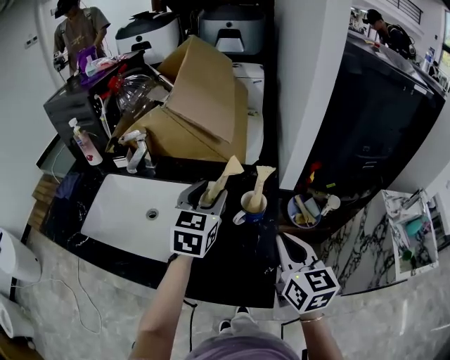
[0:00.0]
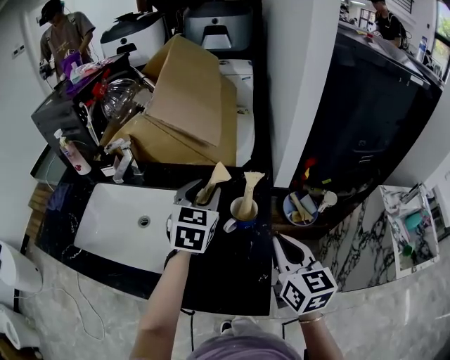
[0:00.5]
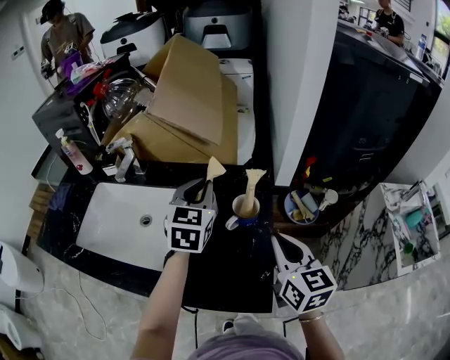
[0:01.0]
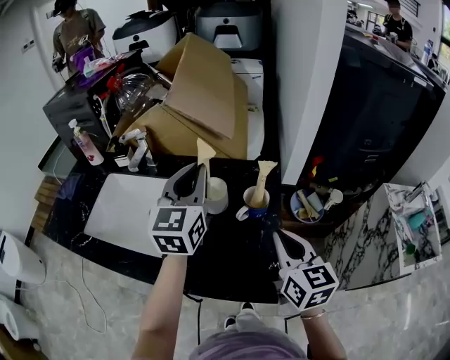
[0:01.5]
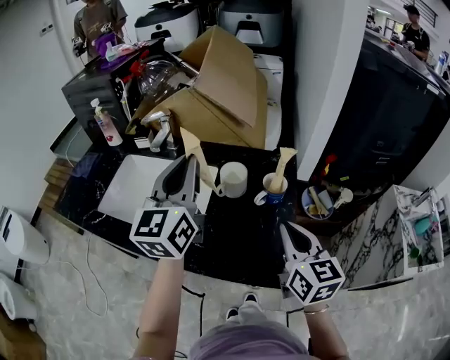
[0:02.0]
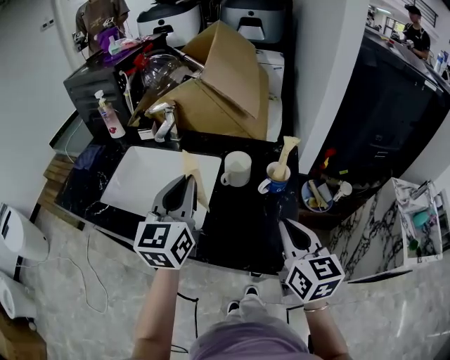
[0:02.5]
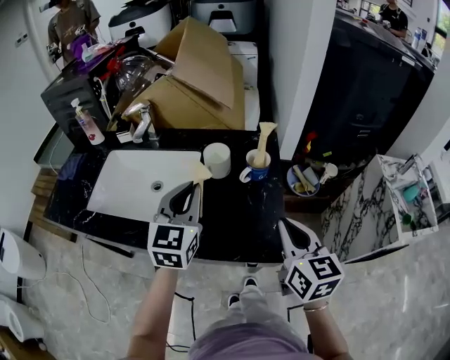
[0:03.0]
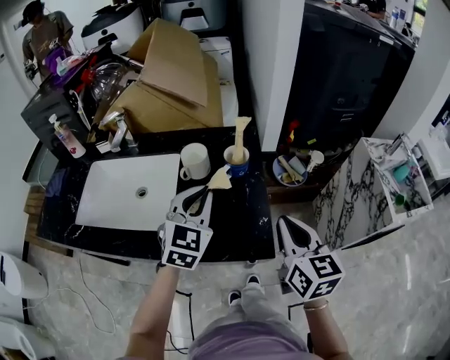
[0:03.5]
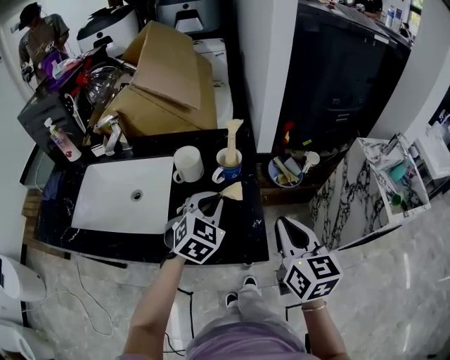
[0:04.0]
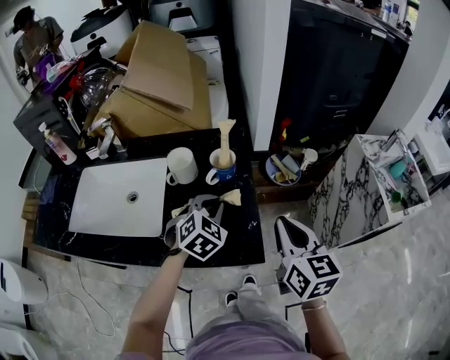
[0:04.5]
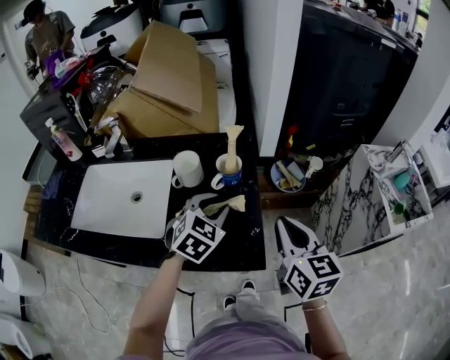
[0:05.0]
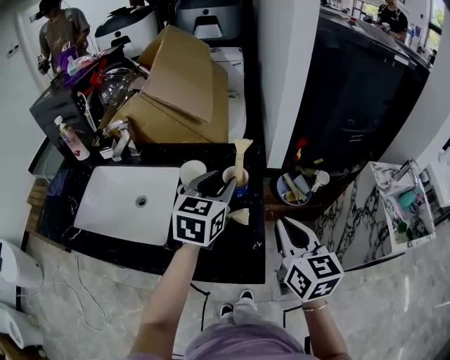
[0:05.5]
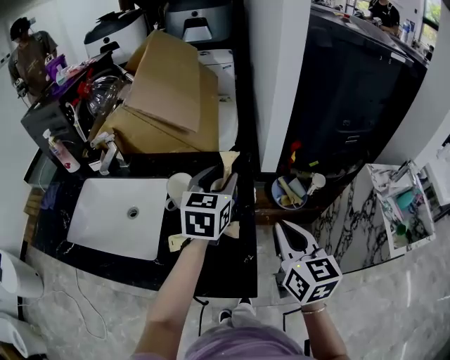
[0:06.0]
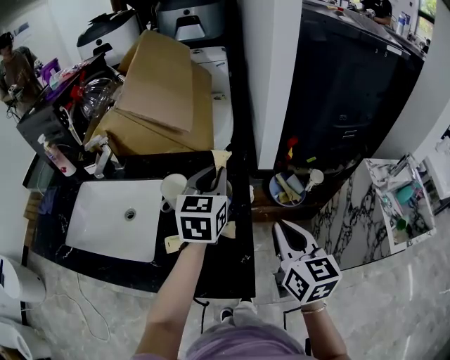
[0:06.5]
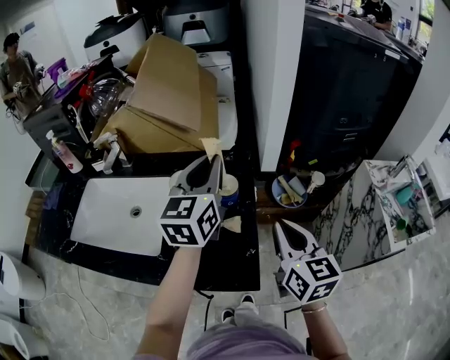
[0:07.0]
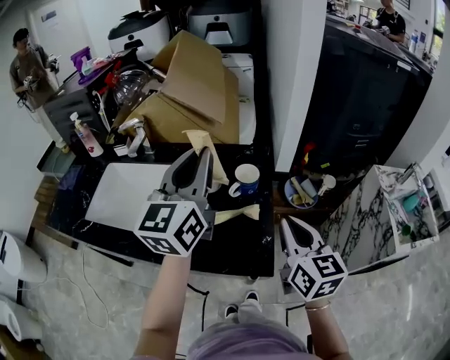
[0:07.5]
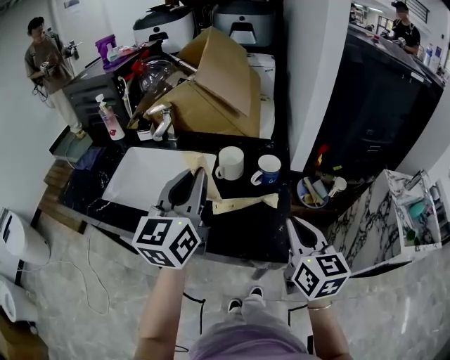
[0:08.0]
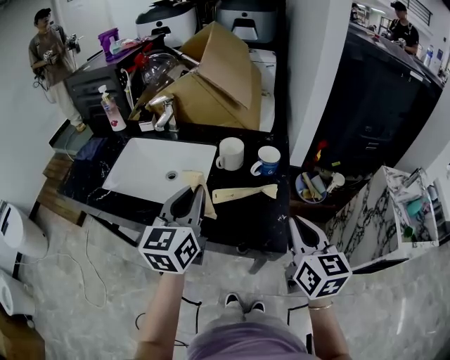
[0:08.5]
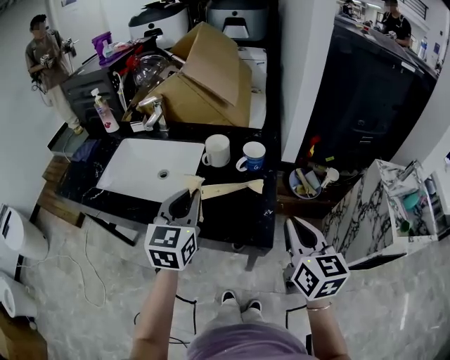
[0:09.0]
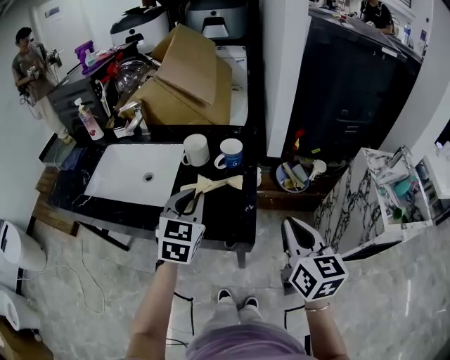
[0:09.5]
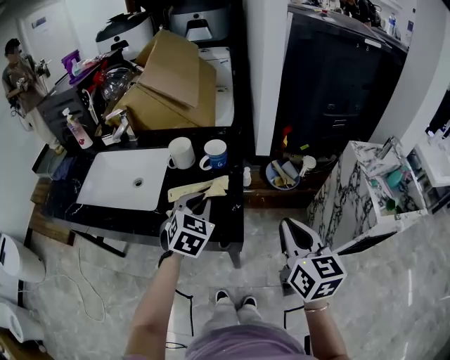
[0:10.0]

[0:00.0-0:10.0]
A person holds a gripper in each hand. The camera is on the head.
0:00.0 to 0:02.0: The left gripper heads upward, to the left and backward, covering approximately 20 cm, rotates roughly 30 degrees, and closes its fingers. Meanwhile the right gripper changes place by some 5 cm.
0:02.0 to 0:04.0: The left gripper travels downward and to the right by approximately 25 cm, and points its fingers approximately 40 degrees further downward; the right gripper is displaced to the right and backward by some 10 cm.
0:04.0 to 0:06.0: The left gripper moves forward and upward, some 15 cm, turns by some 40 degrees, and opens up. Meanwhile the right gripper heads forward, covering about 10 cm.
0:06.0 to 0:08.0: The left gripper is displaced backward, to the left and upward by some 30 cm, changes its angle by roughly 30 degrees, and closes up; the right gripper goes approximately 15 cm backward and to the left.
0:08.0 to 0:10.0: The left gripper travels downward and to the right by about 25 cm, and tilts its fingers some 40 degrees downward; the right gripper is displaced to the right and backward by about 15 cm.

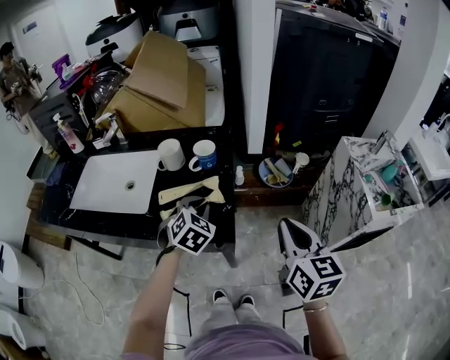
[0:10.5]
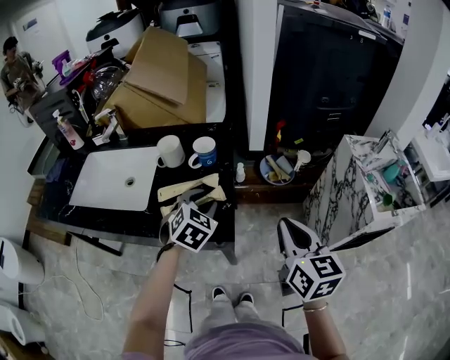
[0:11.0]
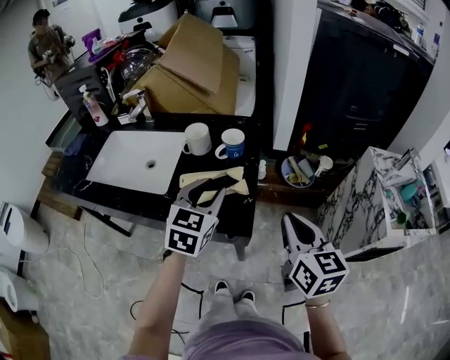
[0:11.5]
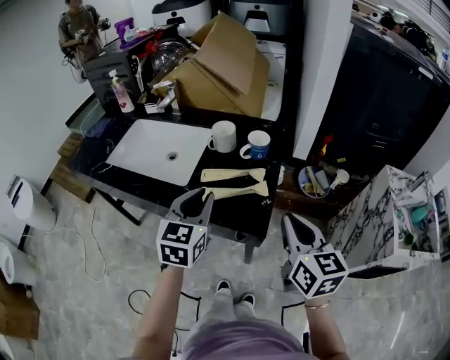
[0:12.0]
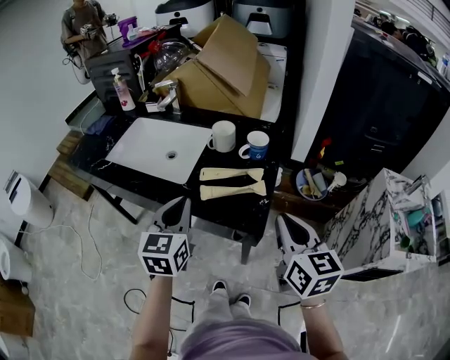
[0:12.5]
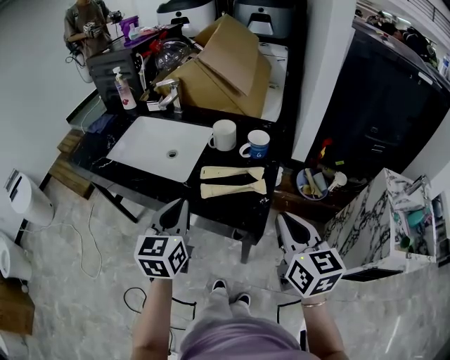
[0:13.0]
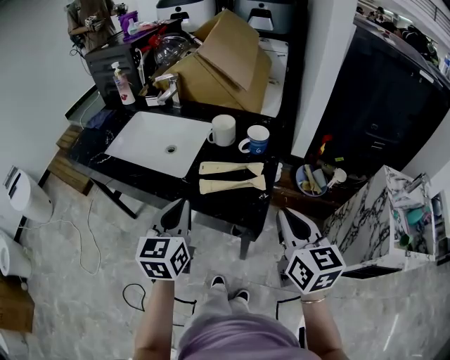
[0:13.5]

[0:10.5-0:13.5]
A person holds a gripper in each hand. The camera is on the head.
0:10.5 to 0:12.0: The right gripper heads to the left, covering about 10 cm, while the left gripper shifts some 15 cm to the left, upward and backward, and changes its angle by about 40 degrees.
0:12.0 to 0:13.5: The left gripper moves to the left, about 5 cm.

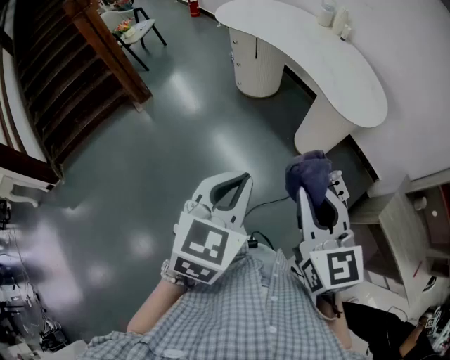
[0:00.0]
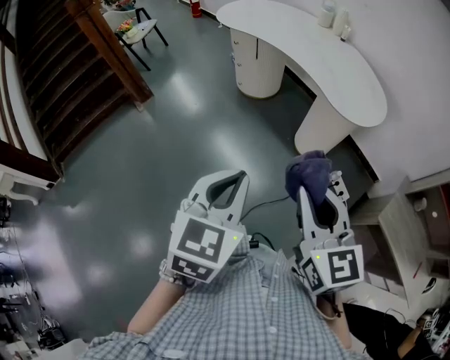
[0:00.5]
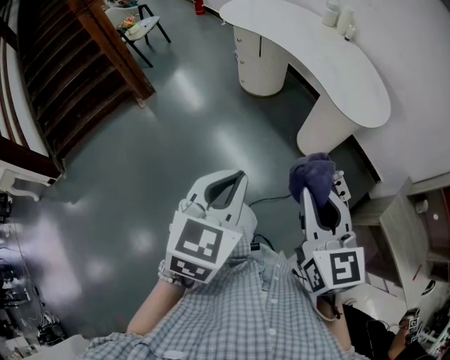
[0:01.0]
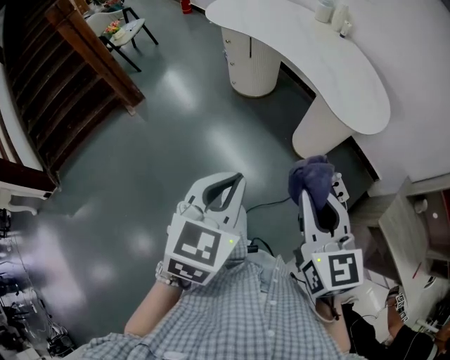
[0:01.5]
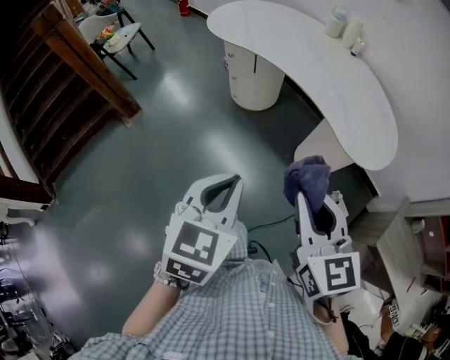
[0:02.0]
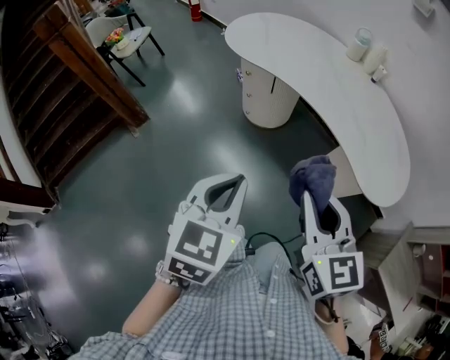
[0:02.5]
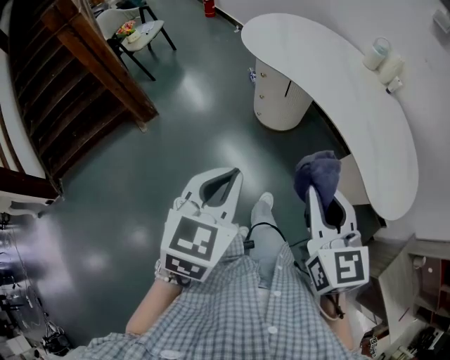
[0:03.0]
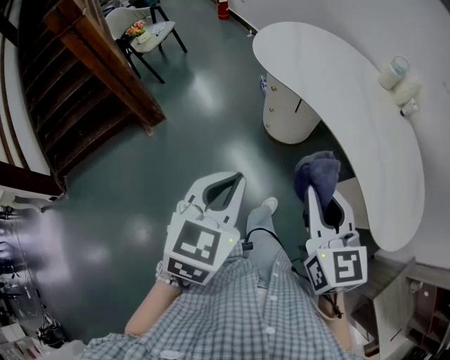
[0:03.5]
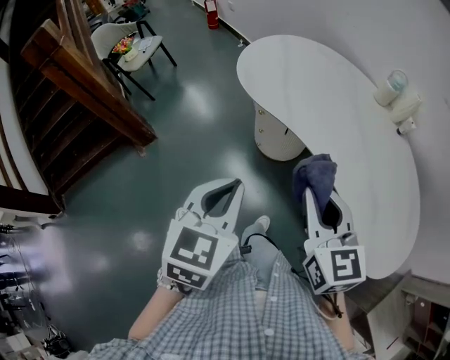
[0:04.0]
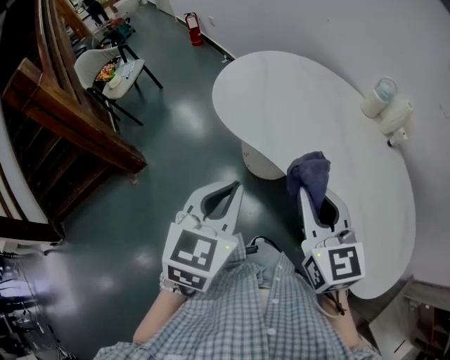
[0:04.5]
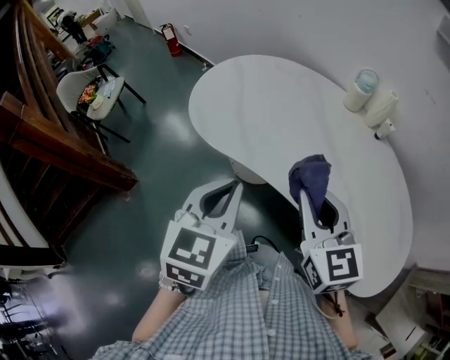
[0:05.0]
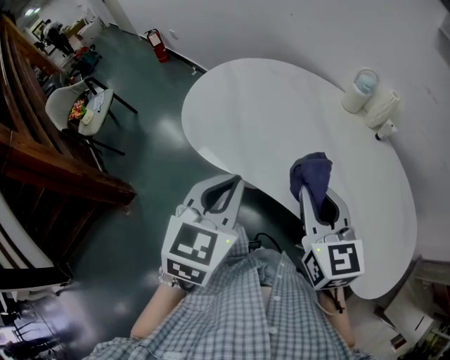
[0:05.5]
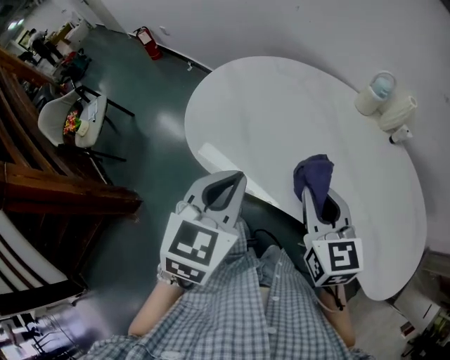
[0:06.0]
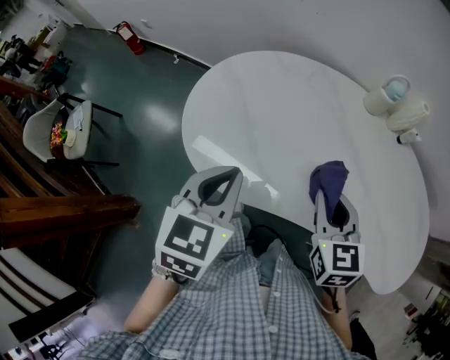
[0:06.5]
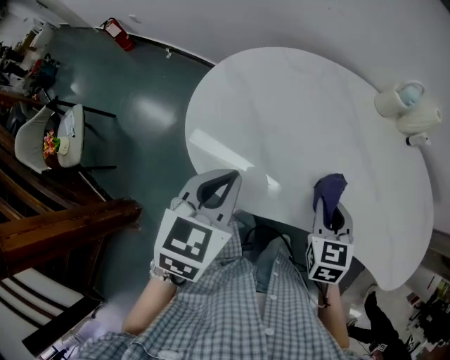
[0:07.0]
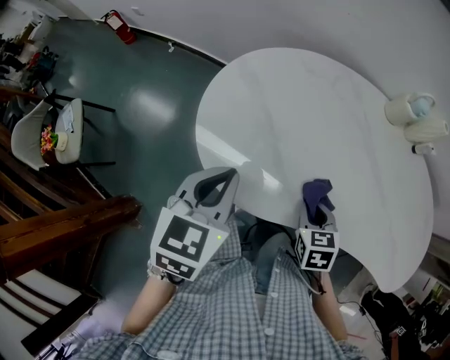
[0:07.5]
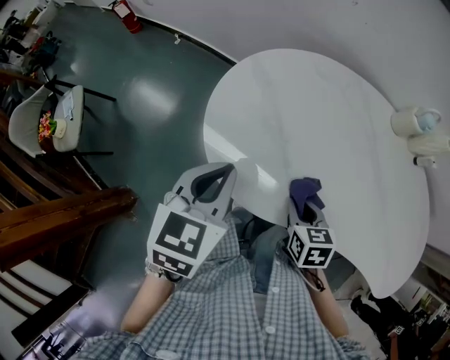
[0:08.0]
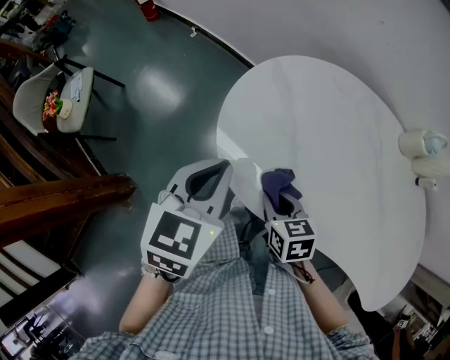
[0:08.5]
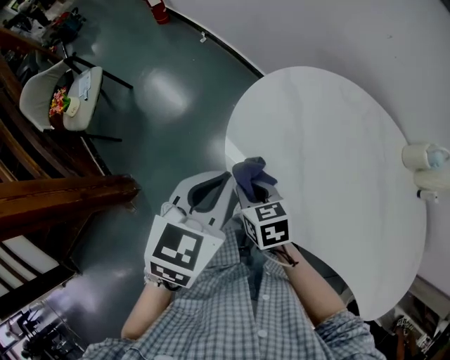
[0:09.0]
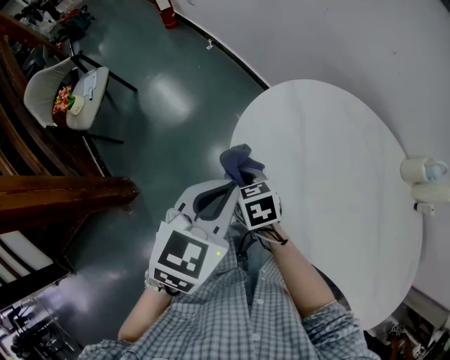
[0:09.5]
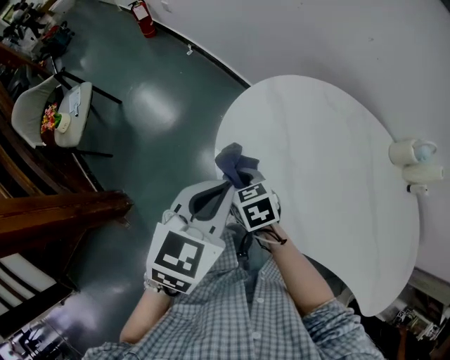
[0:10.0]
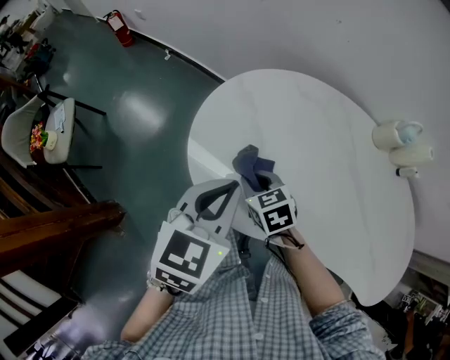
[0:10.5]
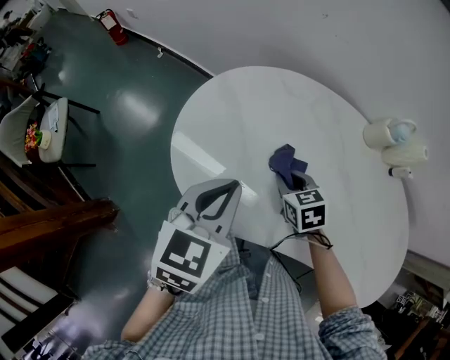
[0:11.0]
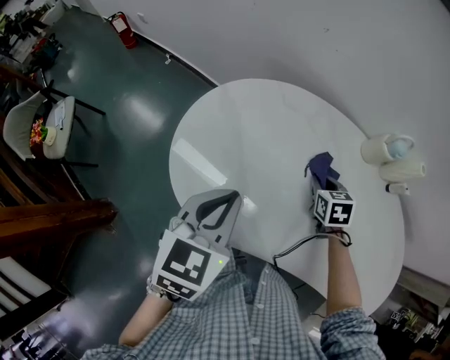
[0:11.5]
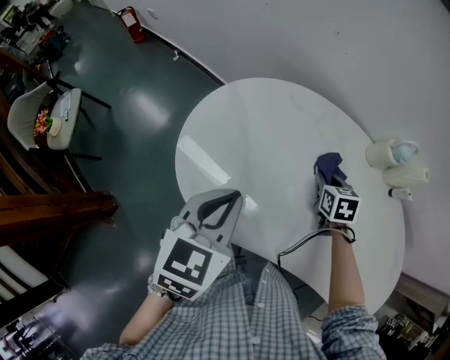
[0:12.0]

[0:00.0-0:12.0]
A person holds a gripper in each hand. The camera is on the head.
0:00.0 to 0:02.0: Both grippers travel together forward, roughly 20 cm.
0:02.0 to 0:04.0: Both grippers travel together forward, roughly 35 cm.
0:04.0 to 0:06.0: Both grippers travel together forward, some 30 cm. The left gripper turns by roughly 20 degrees.
0:06.0 to 0:08.0: The right gripper goes approximately 25 cm downward and to the left, and tips its fingers downward by roughly 30 degrees. Meanwhile the left gripper travels to the left and forward by some 20 cm.
0:08.0 to 0:10.0: The right gripper is displaced to the left and forward by some 25 cm, and rotates about 30 degrees.
0:10.0 to 0:12.0: The left gripper moves to the right, approximately 15 cm; the right gripper travels to the right by some 40 cm, and changes its angle by about 30 degrees.

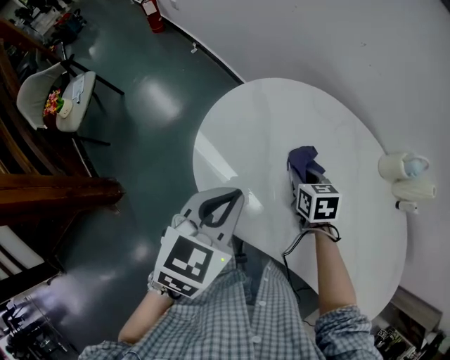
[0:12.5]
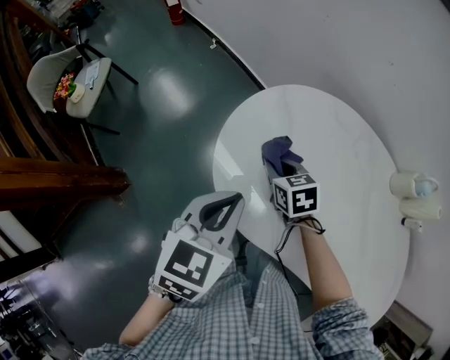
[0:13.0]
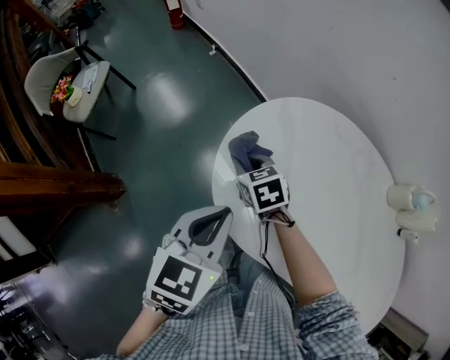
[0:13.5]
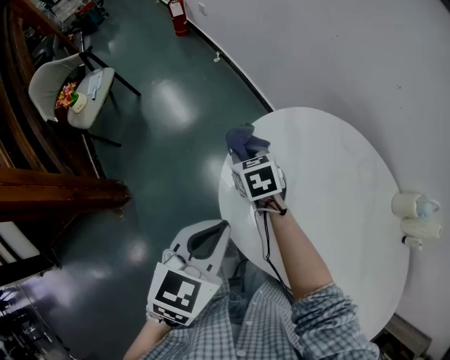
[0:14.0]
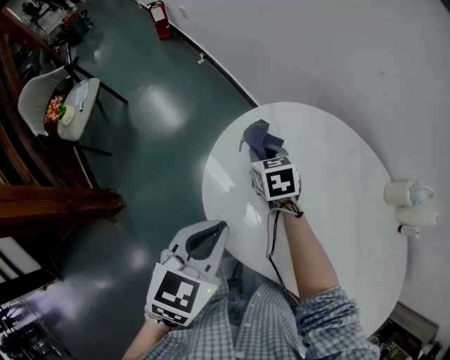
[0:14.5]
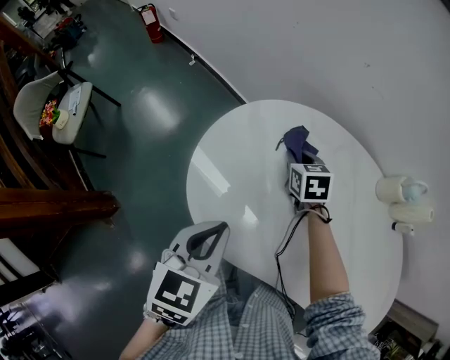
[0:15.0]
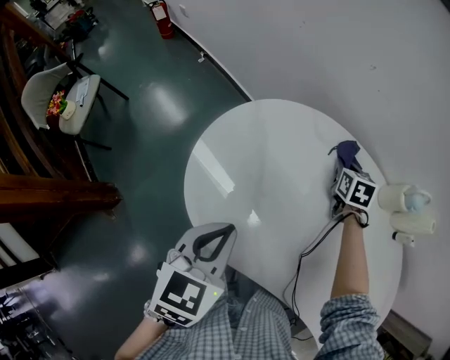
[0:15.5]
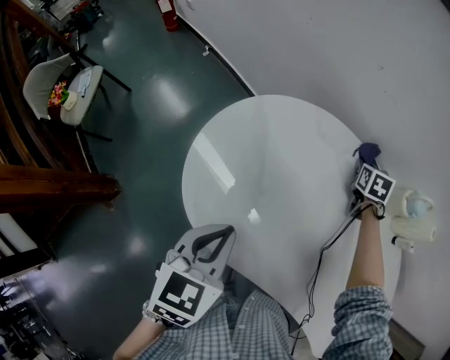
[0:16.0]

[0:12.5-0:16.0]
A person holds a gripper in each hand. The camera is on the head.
0:12.5 to 0:14.5: The right gripper goes approximately 20 cm to the left and forward; the left gripper goes about 5 cm to the left.
0:14.5 to 0:16.0: The left gripper heads to the right, covering some 10 cm. The right gripper is displaced to the right by about 40 cm, and turns by about 40 degrees.
